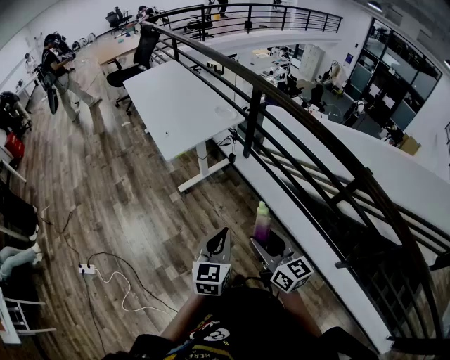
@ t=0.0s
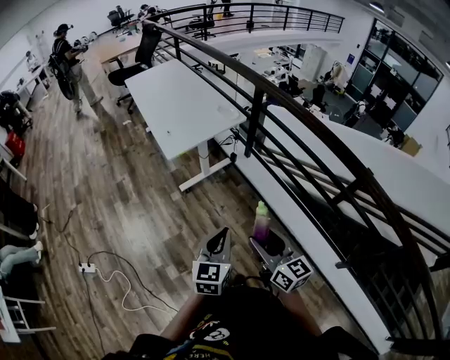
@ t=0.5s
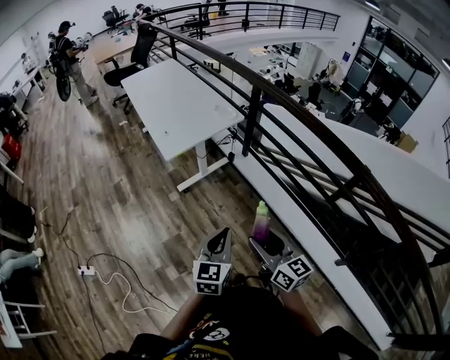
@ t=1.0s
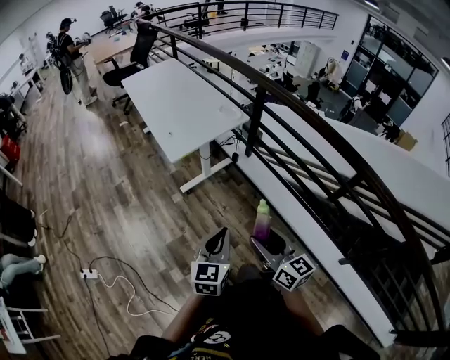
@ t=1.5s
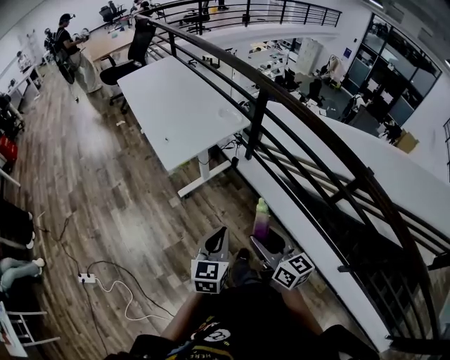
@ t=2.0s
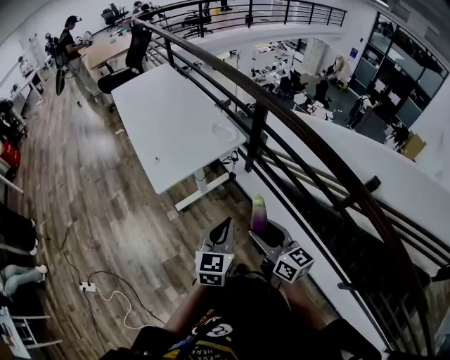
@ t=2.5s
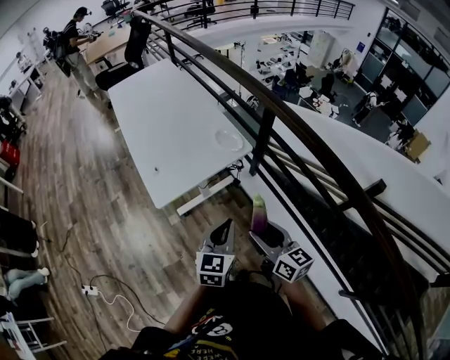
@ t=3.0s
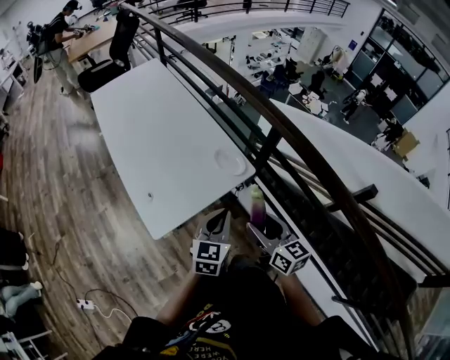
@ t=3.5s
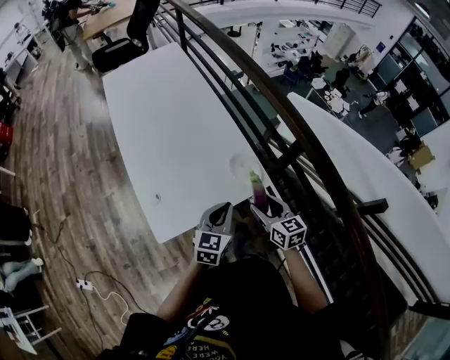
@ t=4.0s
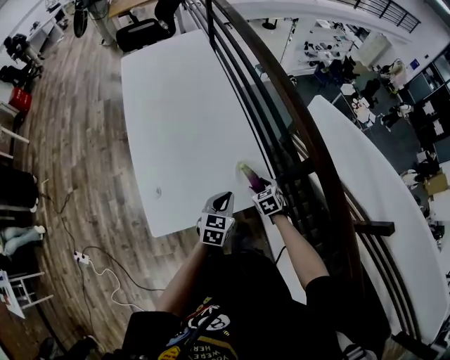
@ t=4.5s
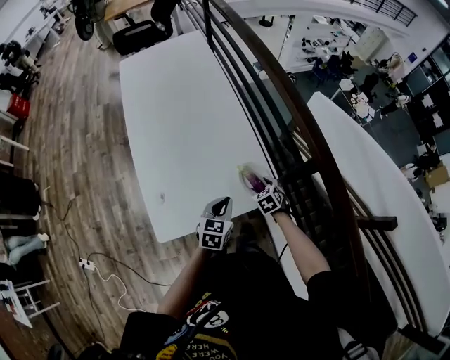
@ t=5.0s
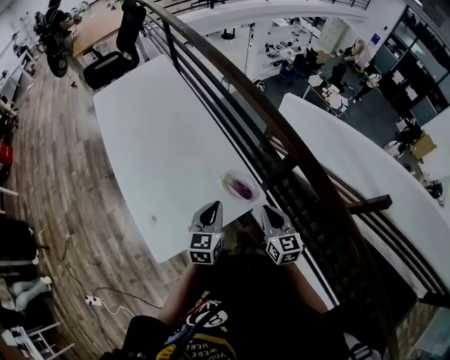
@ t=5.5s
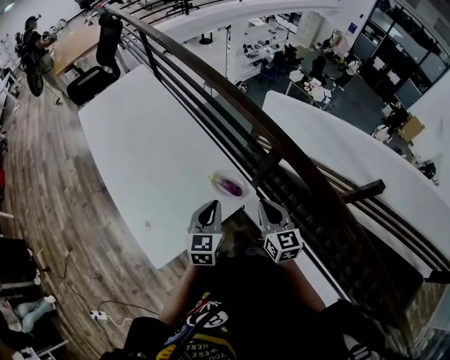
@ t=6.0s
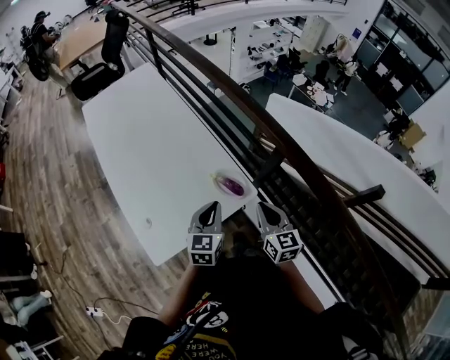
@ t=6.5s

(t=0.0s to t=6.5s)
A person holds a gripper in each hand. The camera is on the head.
t=0.0s - t=2.0s: Both grippers move forward, approximately 10 cm.
t=2.0s - t=4.5s: The two grippers travel together, forward, approximately 70 cm. The right gripper shifts some 30 cm downward, and tilts its fingers some 50 degrees downward.
t=4.5s - t=6.5s: The right gripper moves upward and backward, some 25 cm, angles its fingers upward, by about 40 degrees, and closes. Meanwhile the left gripper moves upward, approximately 10 cm.

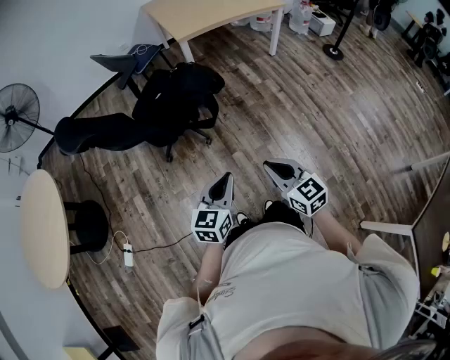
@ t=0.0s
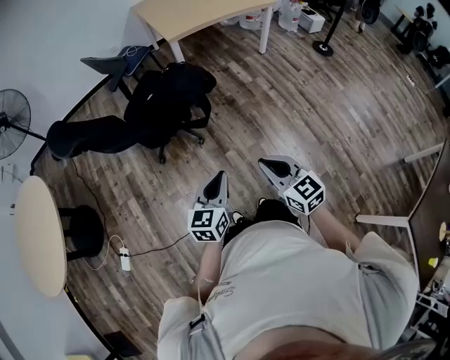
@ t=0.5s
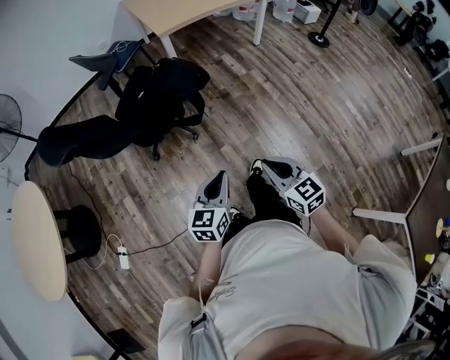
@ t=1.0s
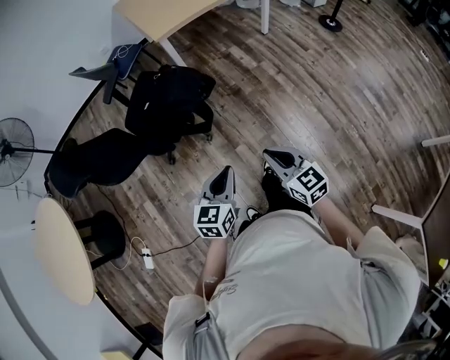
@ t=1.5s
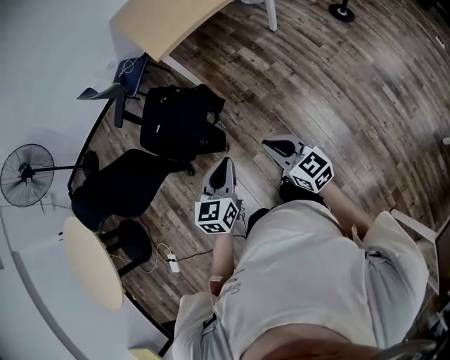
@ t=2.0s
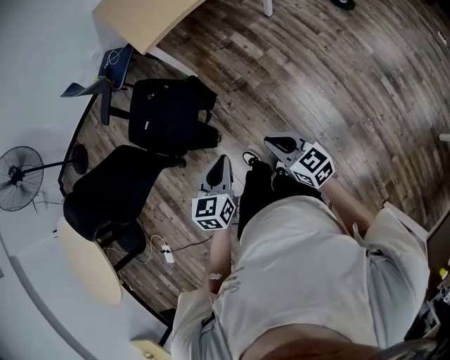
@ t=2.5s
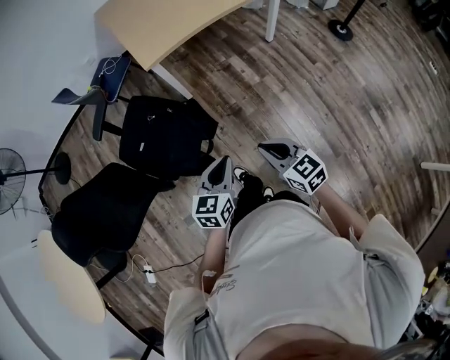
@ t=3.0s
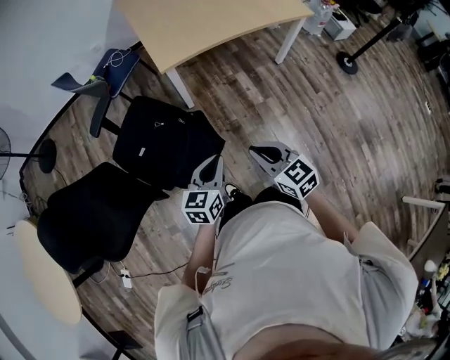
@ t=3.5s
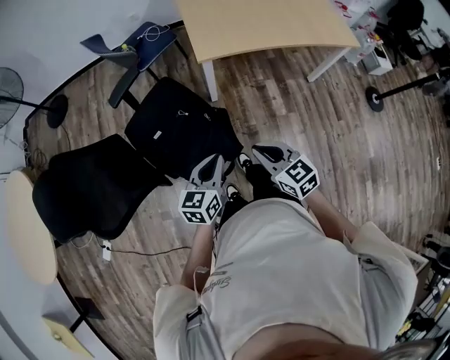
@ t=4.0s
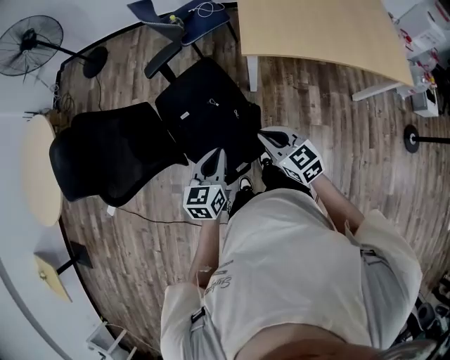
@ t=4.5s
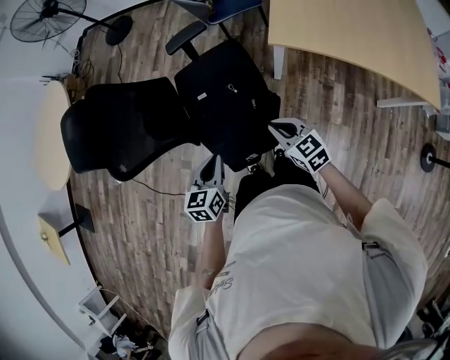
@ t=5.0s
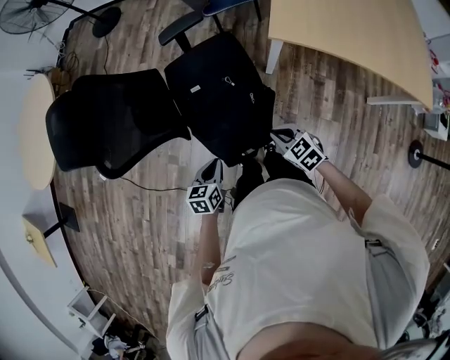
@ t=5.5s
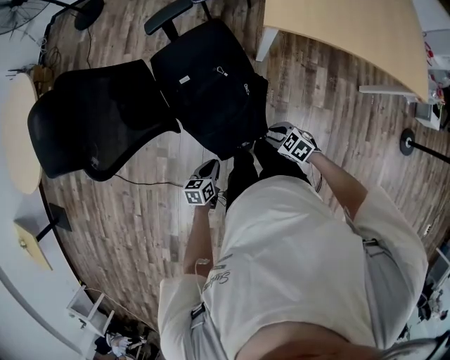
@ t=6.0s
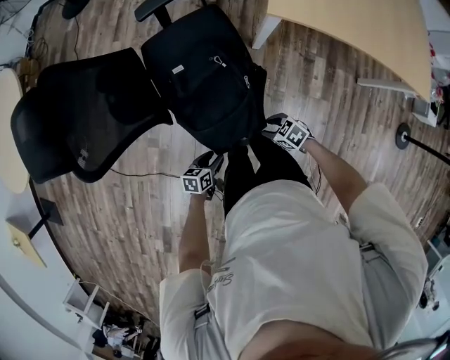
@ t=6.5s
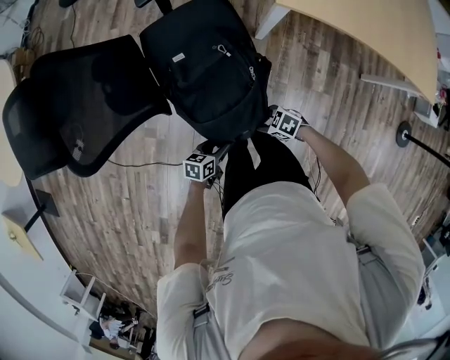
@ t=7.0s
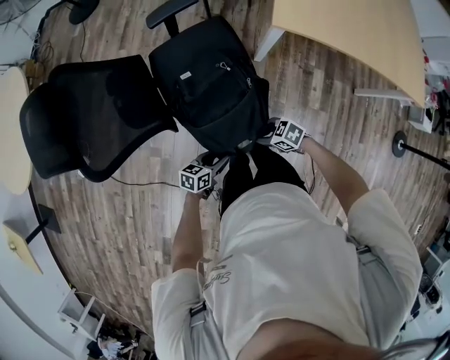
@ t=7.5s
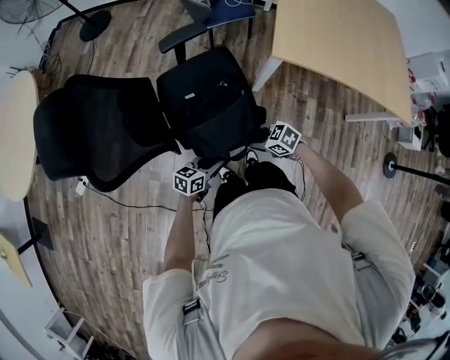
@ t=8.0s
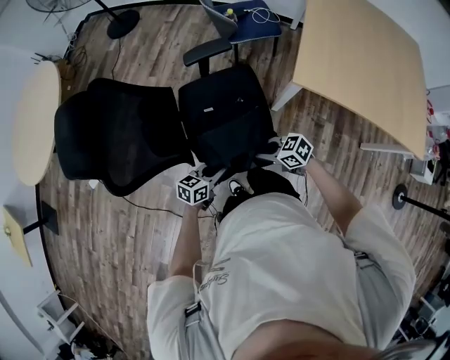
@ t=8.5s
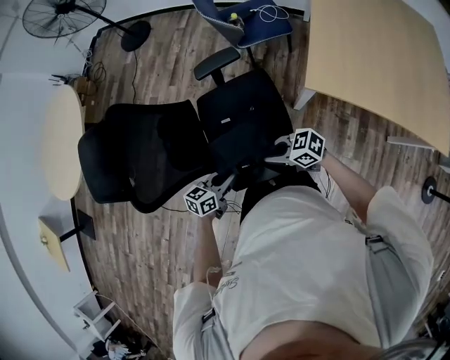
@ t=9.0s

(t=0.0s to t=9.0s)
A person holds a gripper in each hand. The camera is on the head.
t=0.0s - t=2.0s: Both grippers move forward, some 30 cm.
t=2.0s - t=4.5s: The right gripper changes place by some 50 cm, and turns by roughly 40 degrees, while the left gripper ends up some 40 cm from where it was, and rotates about 40 degrees.
t=4.5s - t=7.0s: Both grippers travel together downward, approximately 30 cm. The right gripper swivels some 60 degrees, and opens; the left gripper rotates approximately 40 degrees, and opens its fingers.
t=7.0s - t=9.0s: Both grippers move upward, approximately 20 cm. The right gripper changes its angle by roughly 30 degrees, and closes; the left gripper rotates roughly 20 degrees, and closes up.

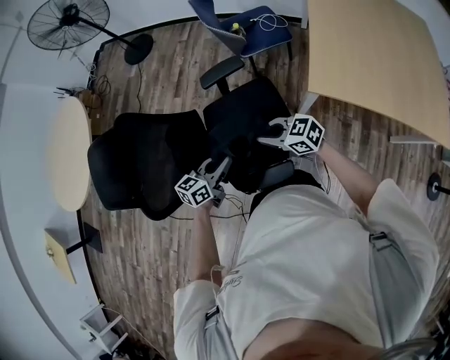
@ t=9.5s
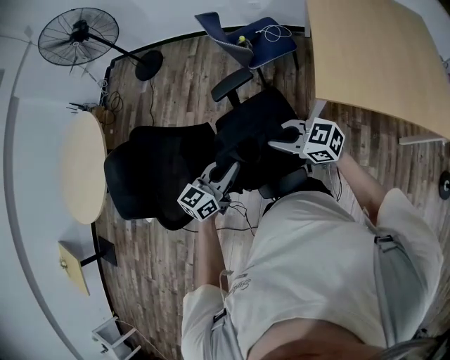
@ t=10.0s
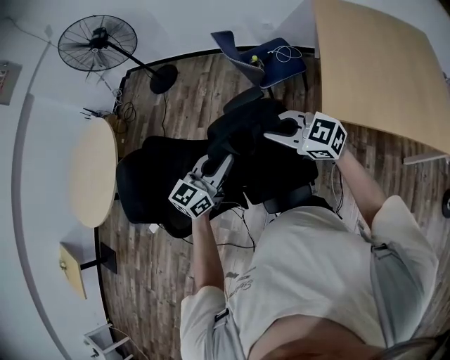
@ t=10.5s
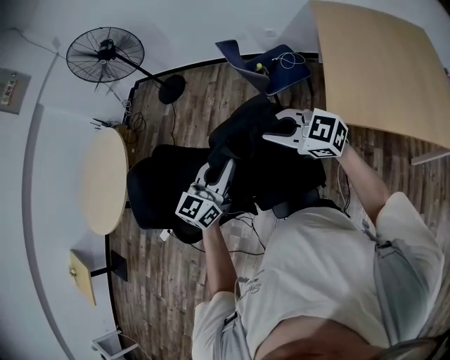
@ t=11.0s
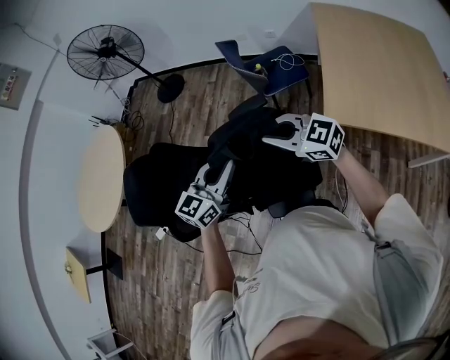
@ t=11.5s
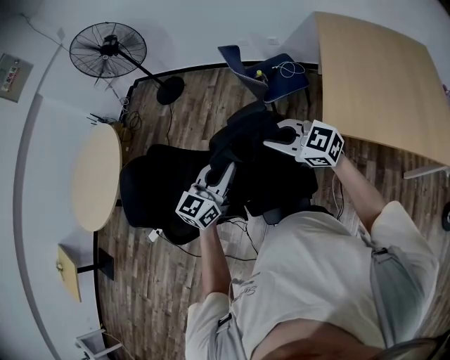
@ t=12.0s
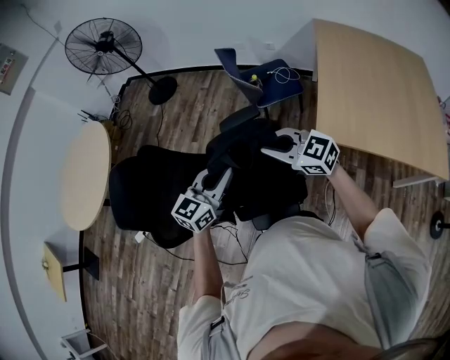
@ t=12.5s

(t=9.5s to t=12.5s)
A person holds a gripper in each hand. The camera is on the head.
t=9.5s - t=11.0s: Both grippers move upward, about 20 cm. The left gripper swivels approximately 30 degrees; the right gripper turns by roughly 30 degrees.
t=11.0s - t=12.5s: The grippers stay close to where they were, moving slightly.

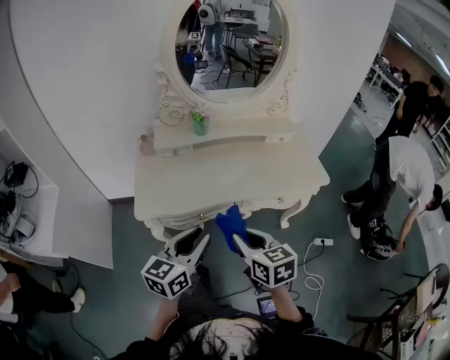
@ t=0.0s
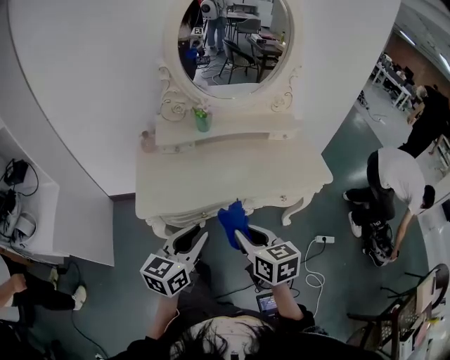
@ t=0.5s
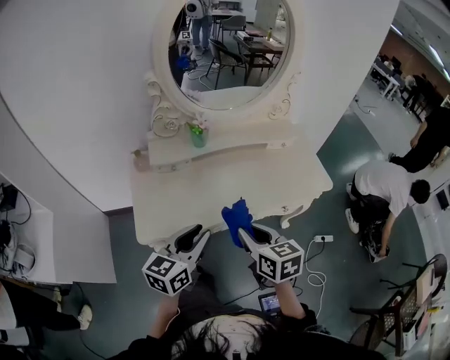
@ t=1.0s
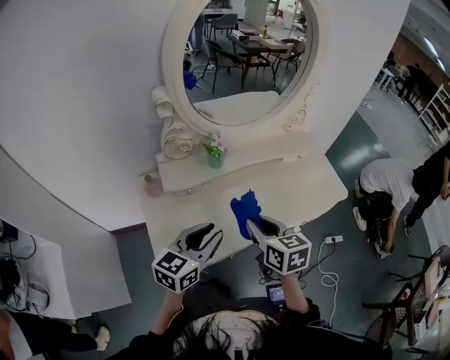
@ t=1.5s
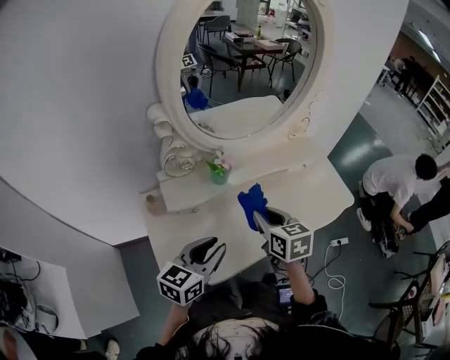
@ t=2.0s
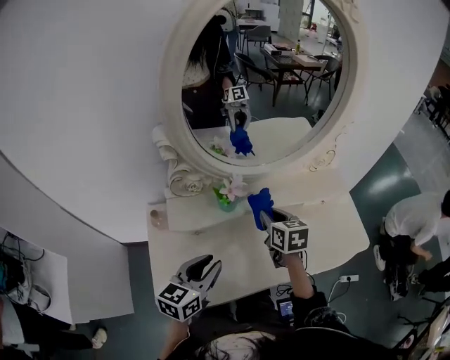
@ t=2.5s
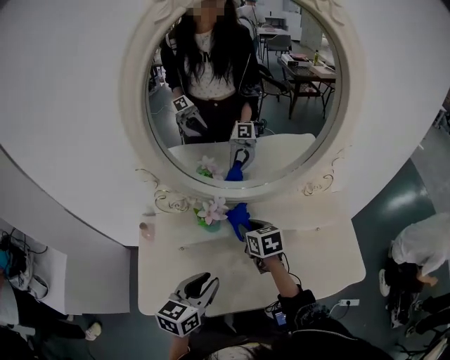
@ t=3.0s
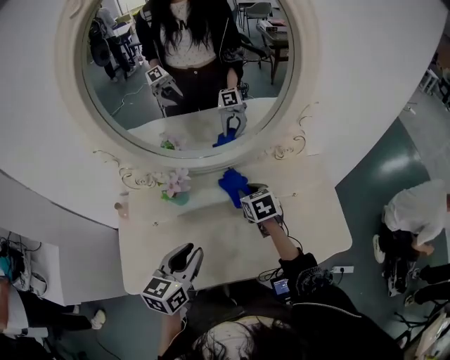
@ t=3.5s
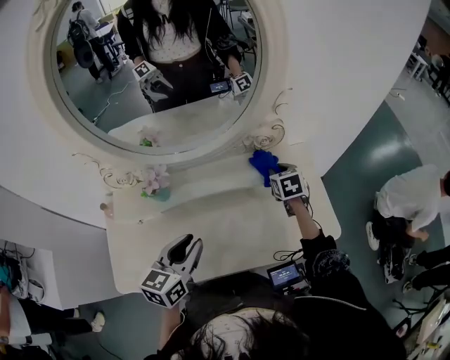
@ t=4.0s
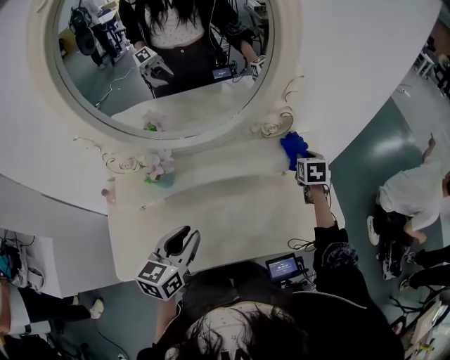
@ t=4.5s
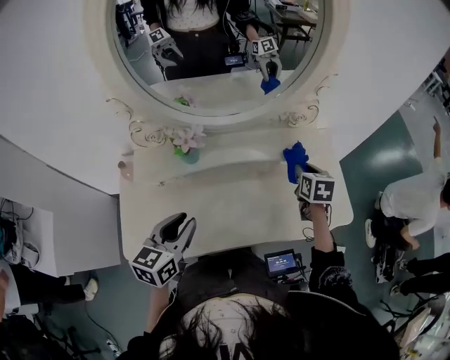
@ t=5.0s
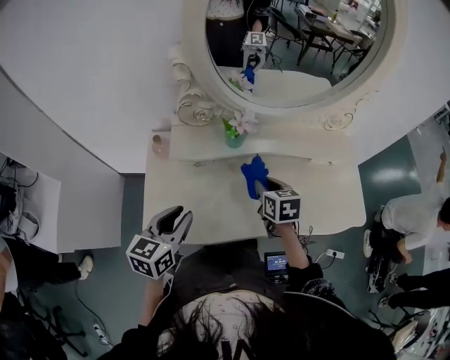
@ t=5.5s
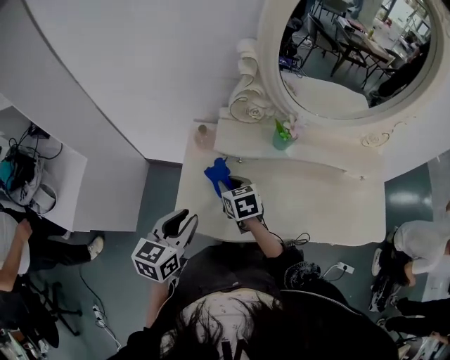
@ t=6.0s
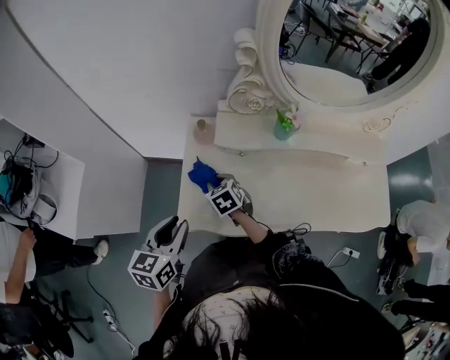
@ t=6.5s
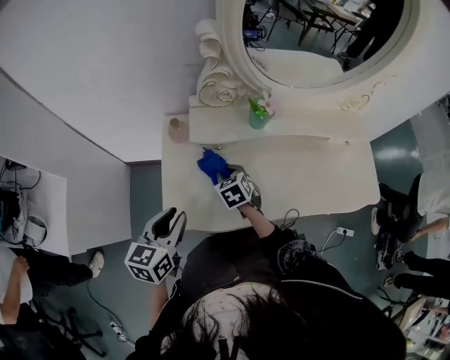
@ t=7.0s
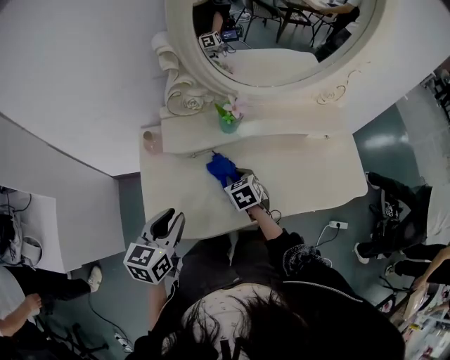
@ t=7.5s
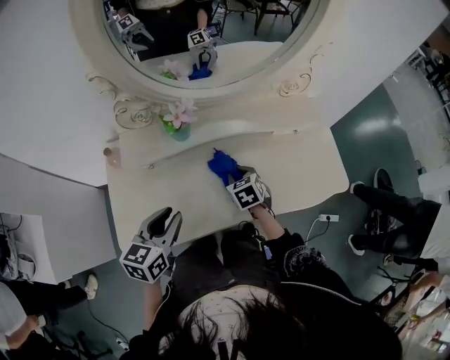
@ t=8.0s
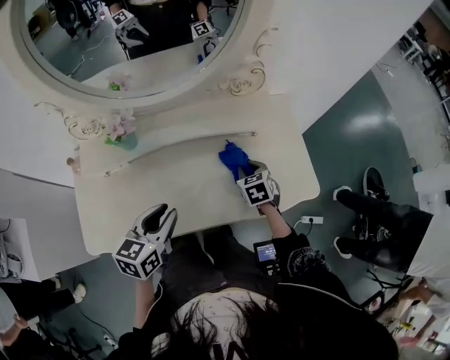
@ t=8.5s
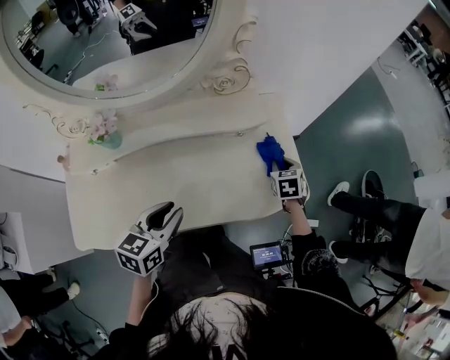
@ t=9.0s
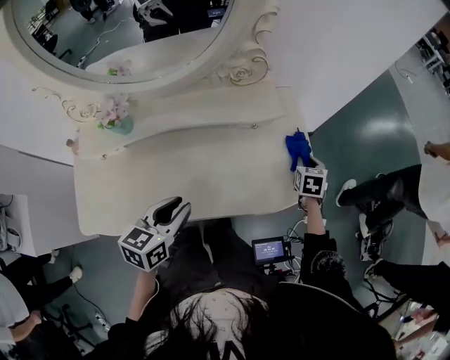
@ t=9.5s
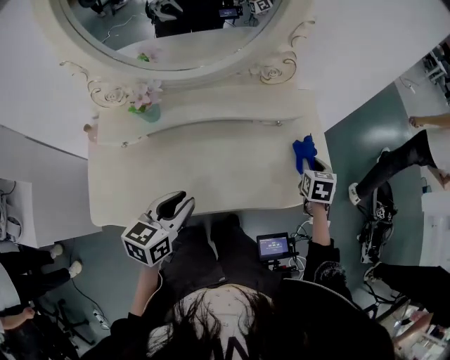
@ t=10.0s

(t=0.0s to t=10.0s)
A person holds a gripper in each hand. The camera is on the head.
t=0.0s - t=2.0s: The left gripper shifts roughly 25 cm forward and to the left, while the right gripper goes some 30 cm forward.
t=2.0s - t=4.0s: The left gripper is displaced to the right and forward by approximately 20 cm, and swivels roughly 20 degrees, while the right gripper moves to the right, forward and downward, some 40 cm, and changes its angle by about 20 degrees.
t=4.0s - t=6.0s: The right gripper changes place by some 60 cm, and swivels some 30 degrees, while the left gripper ends up some 35 cm from where it was.
t=6.0s - t=8.0s: The right gripper is displaced to the right by about 30 cm, and turns by about 20 degrees. The left gripper moves to the right, approximately 20 cm.
t=8.0s - t=10.0s: The right gripper travels to the right by some 35 cm, and turns by about 30 degrees. The left gripper travels to the right by approximately 15 cm.
